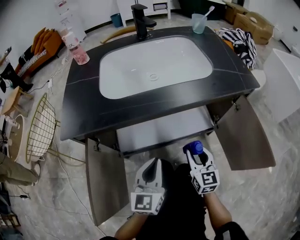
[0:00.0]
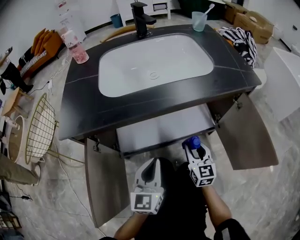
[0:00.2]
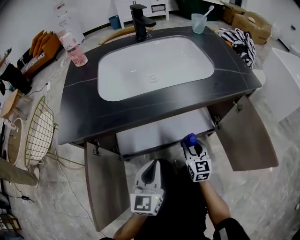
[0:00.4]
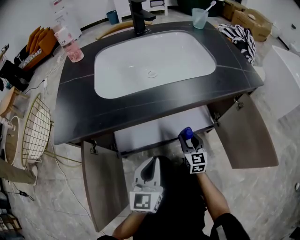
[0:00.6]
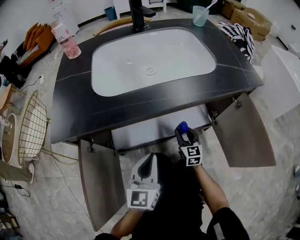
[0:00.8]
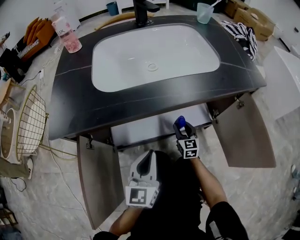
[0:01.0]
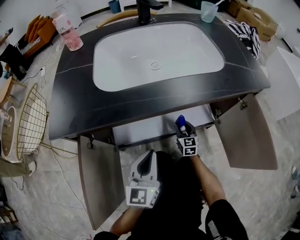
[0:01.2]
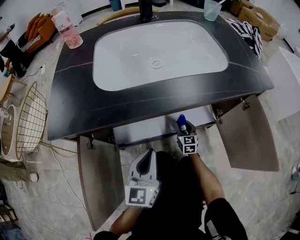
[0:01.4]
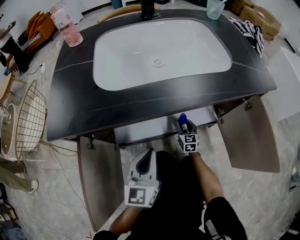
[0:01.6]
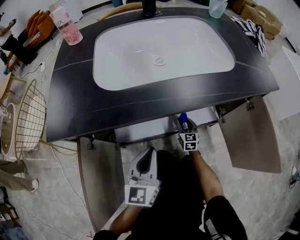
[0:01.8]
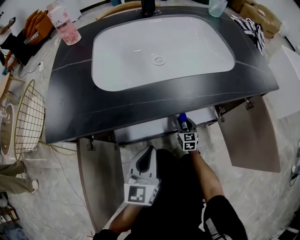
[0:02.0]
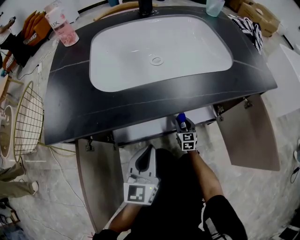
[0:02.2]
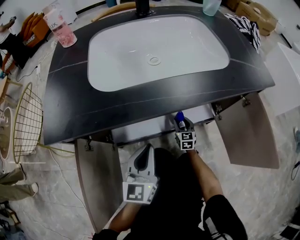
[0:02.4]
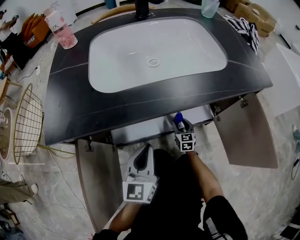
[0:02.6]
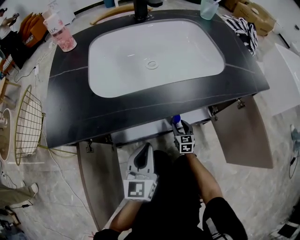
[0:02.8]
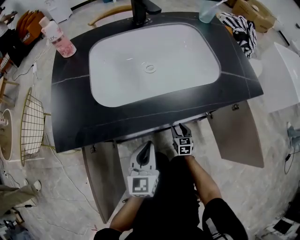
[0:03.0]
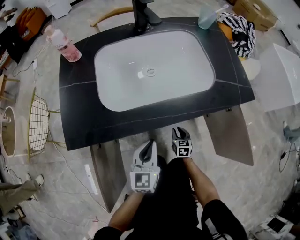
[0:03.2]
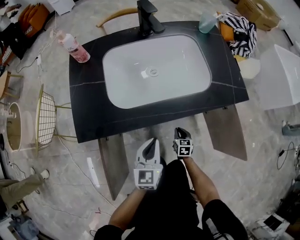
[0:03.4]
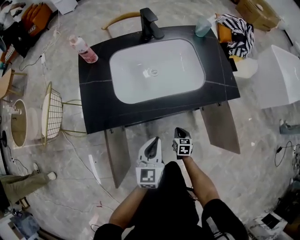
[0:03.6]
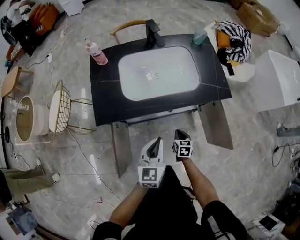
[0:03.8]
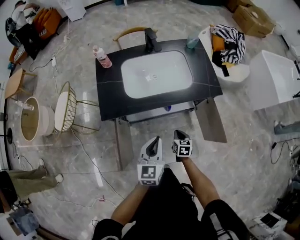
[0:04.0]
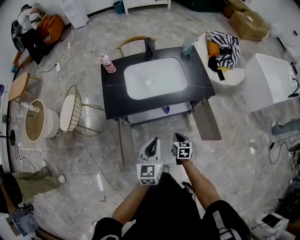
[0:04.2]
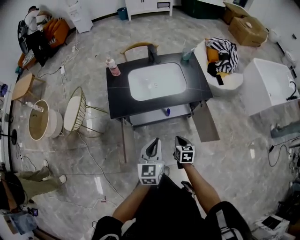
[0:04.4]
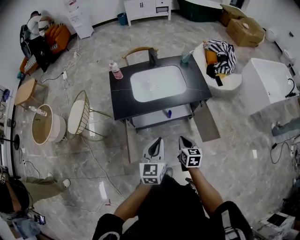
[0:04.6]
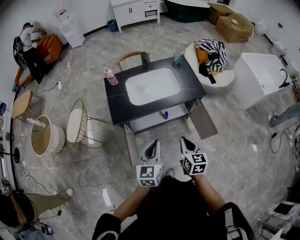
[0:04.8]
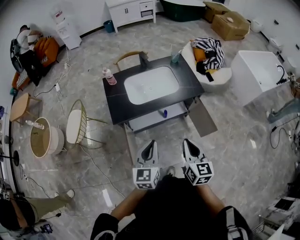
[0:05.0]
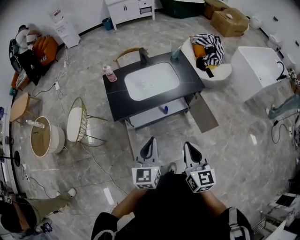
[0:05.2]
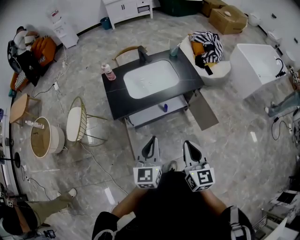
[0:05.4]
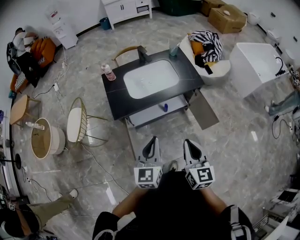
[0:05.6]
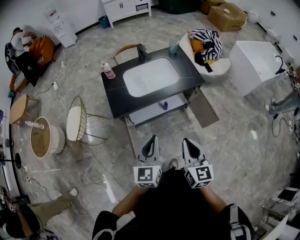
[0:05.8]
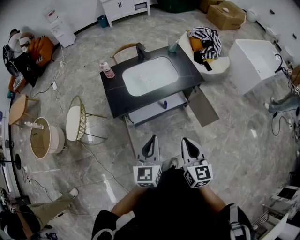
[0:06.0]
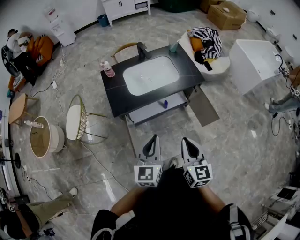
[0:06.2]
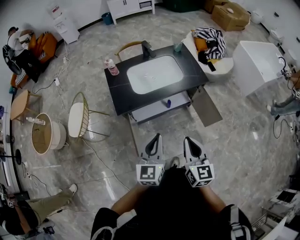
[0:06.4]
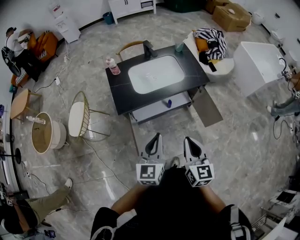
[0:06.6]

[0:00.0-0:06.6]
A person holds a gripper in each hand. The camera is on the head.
0:00.0 to 0:01.6: The left gripper moves roughly 5 cm. The right gripper shifts about 30 cm downward and forward.
0:01.6 to 0:03.2: The left gripper moves upward, about 10 cm; the right gripper travels upward and backward by about 10 cm, and turns by approximately 20 degrees.
0:03.2 to 0:05.0: The right gripper heads upward and backward, covering some 80 cm, rotates roughly 30 degrees, and closes up. Meanwhile the left gripper moves upward and backward, approximately 50 cm.
0:05.0 to 0:06.6: The right gripper heads to the left, covering some 5 cm.

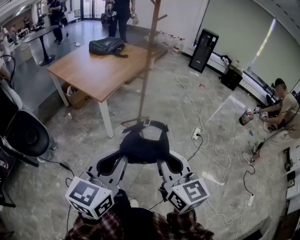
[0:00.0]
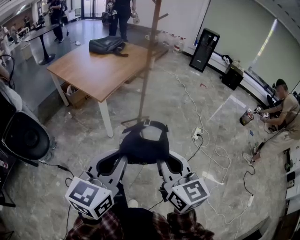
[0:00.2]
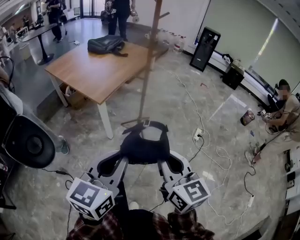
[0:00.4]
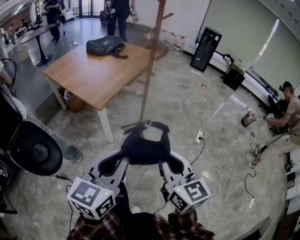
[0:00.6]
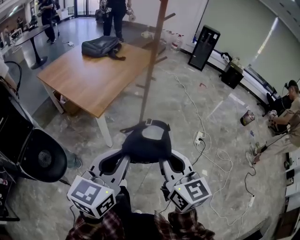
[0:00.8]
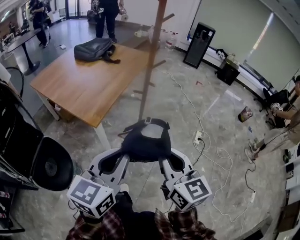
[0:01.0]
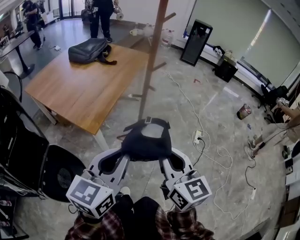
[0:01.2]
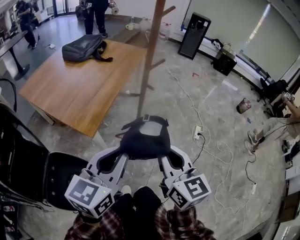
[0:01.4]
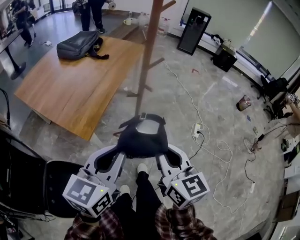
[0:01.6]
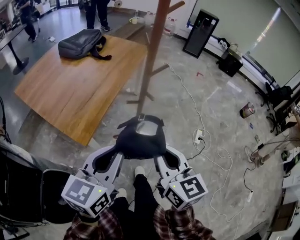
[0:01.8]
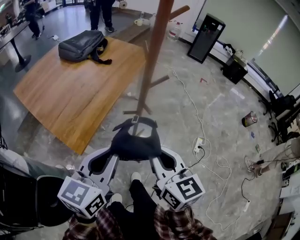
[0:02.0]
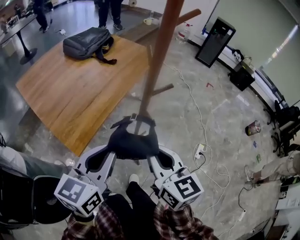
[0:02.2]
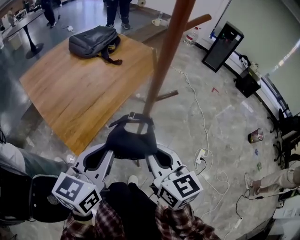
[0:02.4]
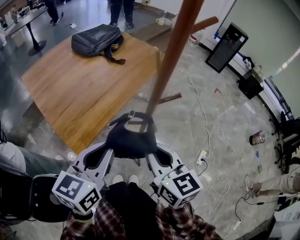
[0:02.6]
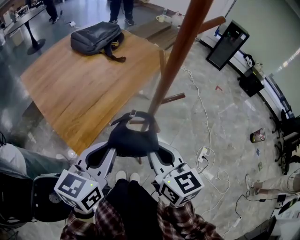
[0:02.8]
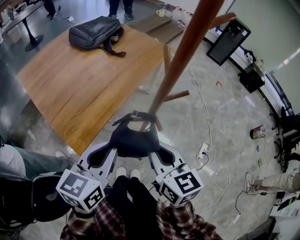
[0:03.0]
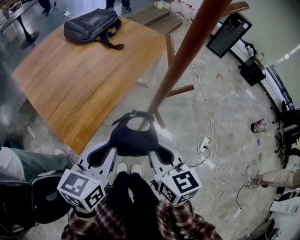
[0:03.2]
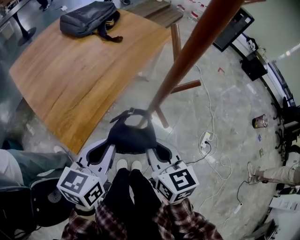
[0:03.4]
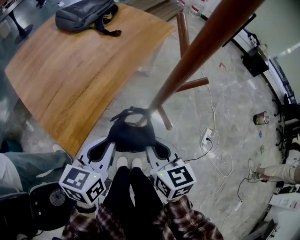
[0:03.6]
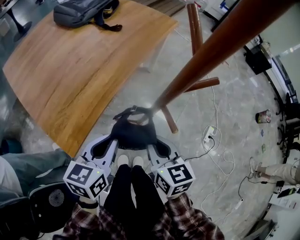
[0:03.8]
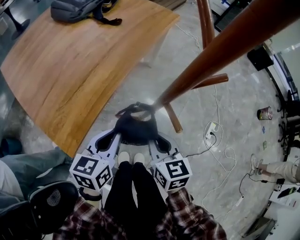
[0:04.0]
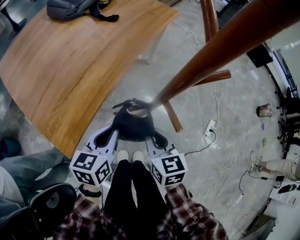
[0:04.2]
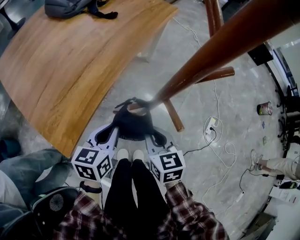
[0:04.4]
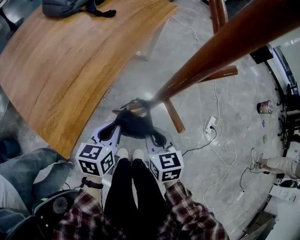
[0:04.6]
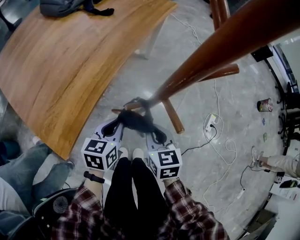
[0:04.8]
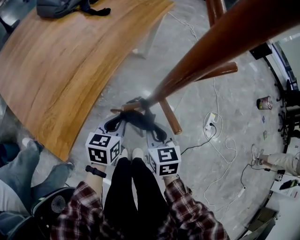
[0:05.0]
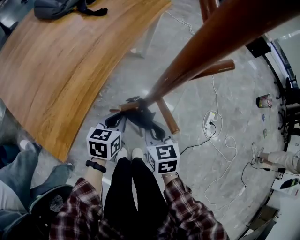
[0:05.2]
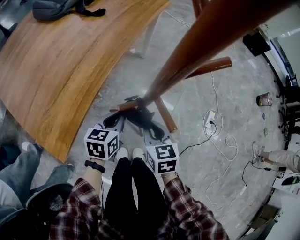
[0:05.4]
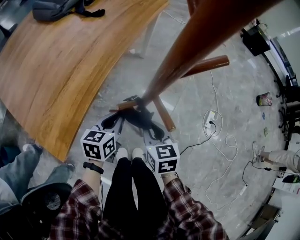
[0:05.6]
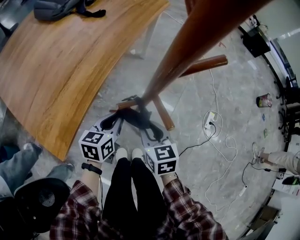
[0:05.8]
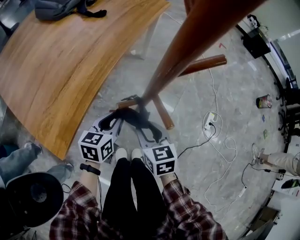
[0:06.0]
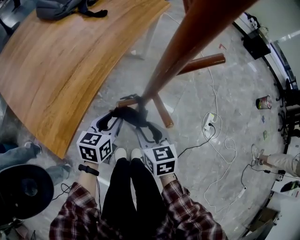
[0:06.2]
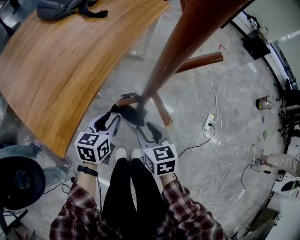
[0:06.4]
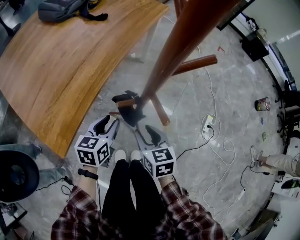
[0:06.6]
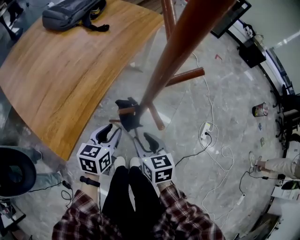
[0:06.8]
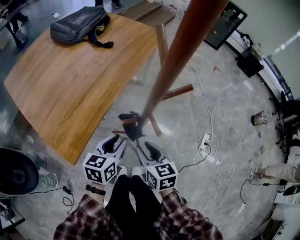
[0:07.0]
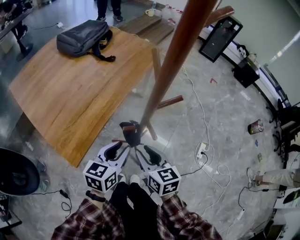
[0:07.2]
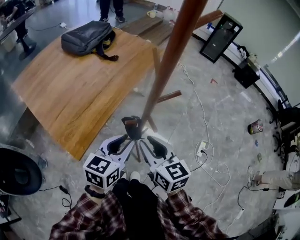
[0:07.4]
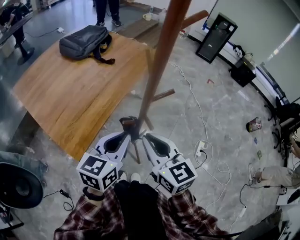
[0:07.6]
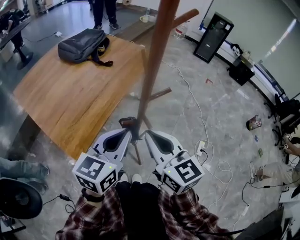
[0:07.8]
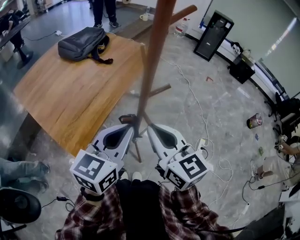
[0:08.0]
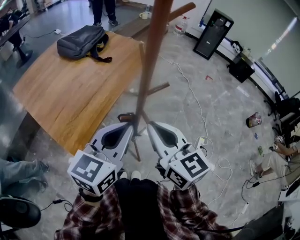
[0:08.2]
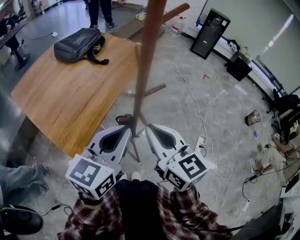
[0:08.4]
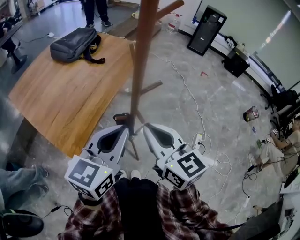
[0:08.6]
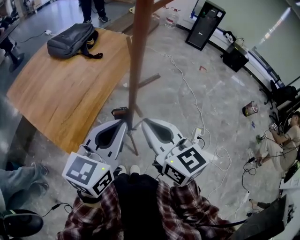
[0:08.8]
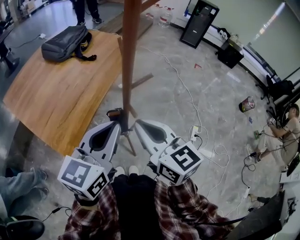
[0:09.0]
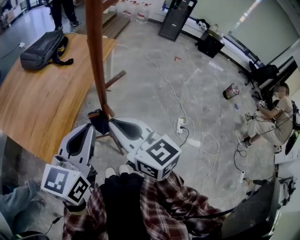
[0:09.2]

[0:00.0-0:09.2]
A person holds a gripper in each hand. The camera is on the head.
0:00.0 to 0:01.6: The grippers both shift forward by roughly 35 cm.
0:01.6 to 0:03.0: The grippers both shift forward by some 20 cm.
0:03.0 to 0:04.6: Both grippers travel together downward, about 30 cm.
0:04.6 to 0:06.2: The right gripper opens up, while the left gripper opens.
0:06.2 to 0:07.6: The two grippers go about 30 cm upward. The right gripper changes its angle by approximately 30 degrees, and closes up; the left gripper closes.
0:07.6 to 0:09.2: The left gripper heads upward, covering approximately 10 cm; the right gripper is displaced upward by about 5 cm.

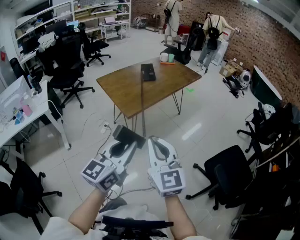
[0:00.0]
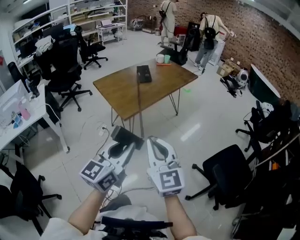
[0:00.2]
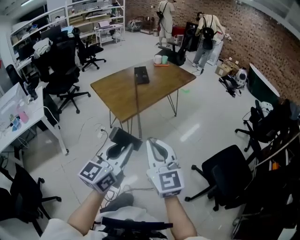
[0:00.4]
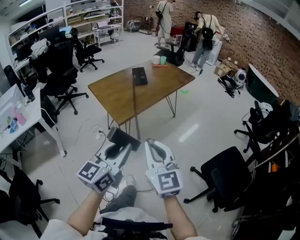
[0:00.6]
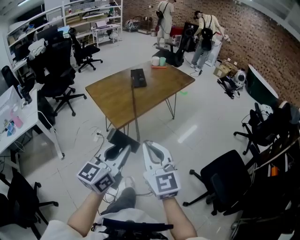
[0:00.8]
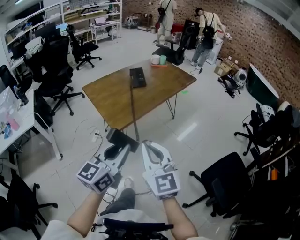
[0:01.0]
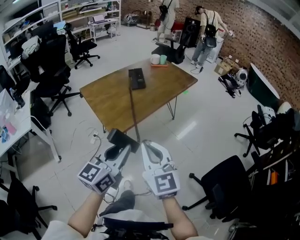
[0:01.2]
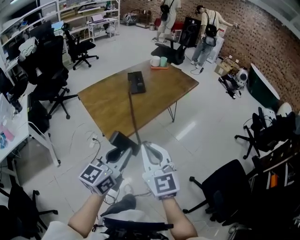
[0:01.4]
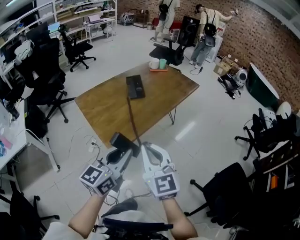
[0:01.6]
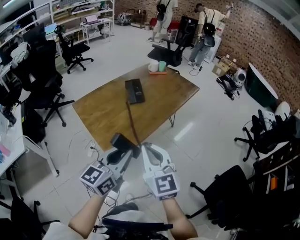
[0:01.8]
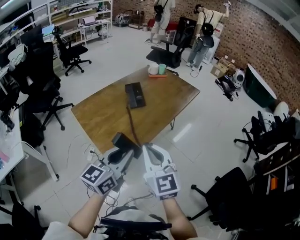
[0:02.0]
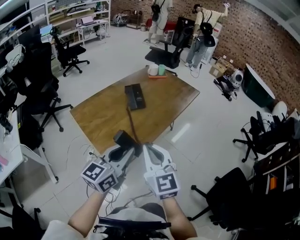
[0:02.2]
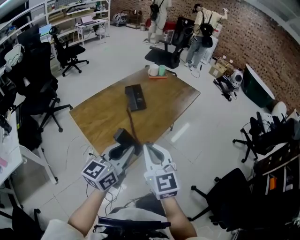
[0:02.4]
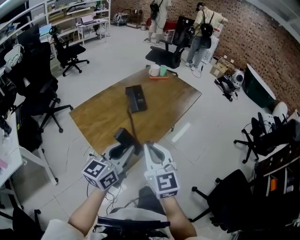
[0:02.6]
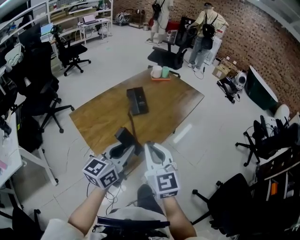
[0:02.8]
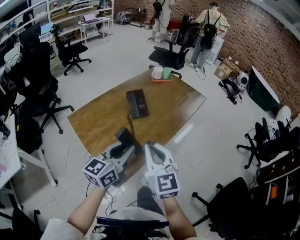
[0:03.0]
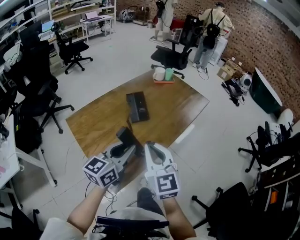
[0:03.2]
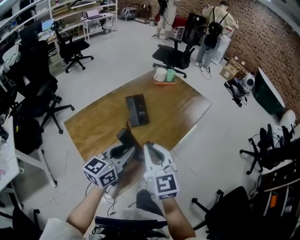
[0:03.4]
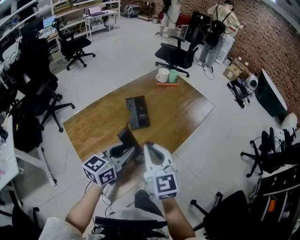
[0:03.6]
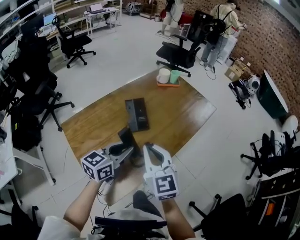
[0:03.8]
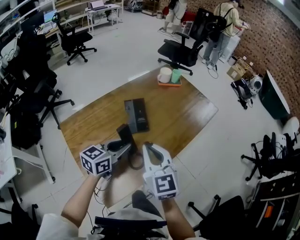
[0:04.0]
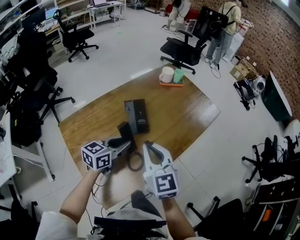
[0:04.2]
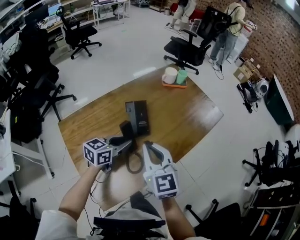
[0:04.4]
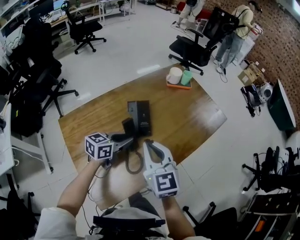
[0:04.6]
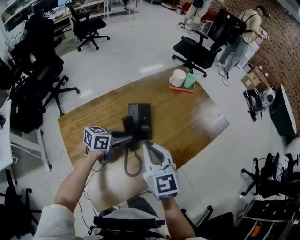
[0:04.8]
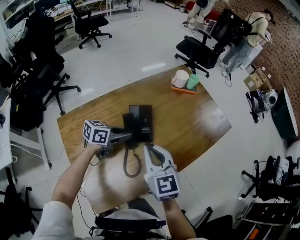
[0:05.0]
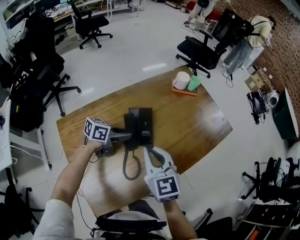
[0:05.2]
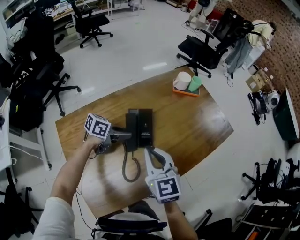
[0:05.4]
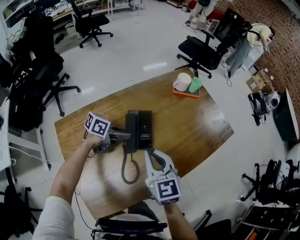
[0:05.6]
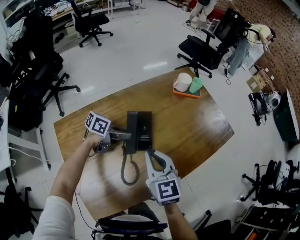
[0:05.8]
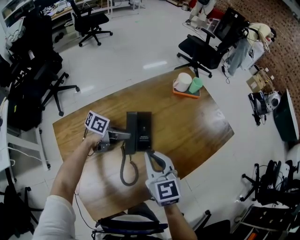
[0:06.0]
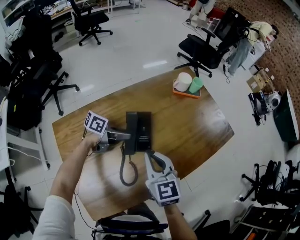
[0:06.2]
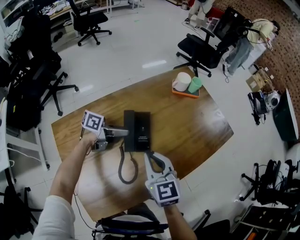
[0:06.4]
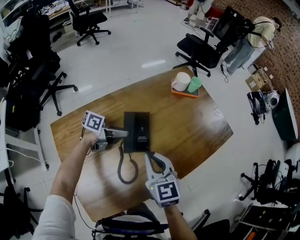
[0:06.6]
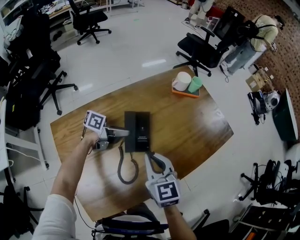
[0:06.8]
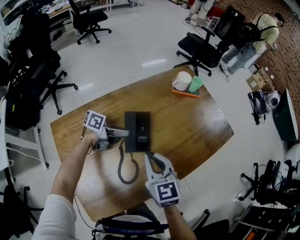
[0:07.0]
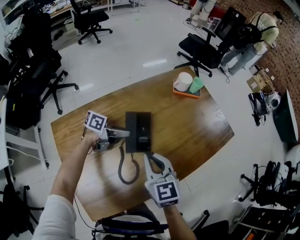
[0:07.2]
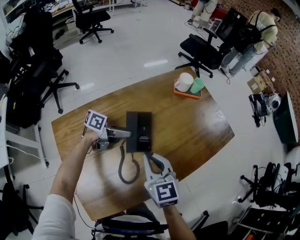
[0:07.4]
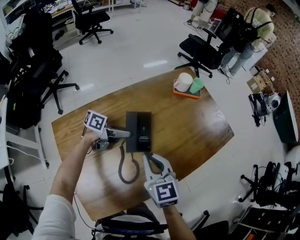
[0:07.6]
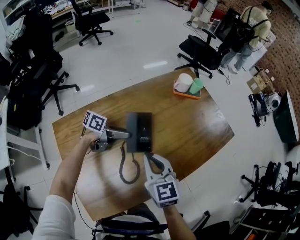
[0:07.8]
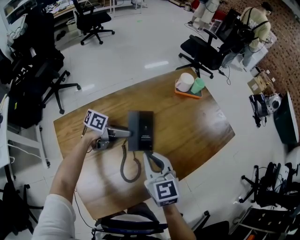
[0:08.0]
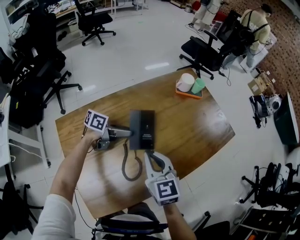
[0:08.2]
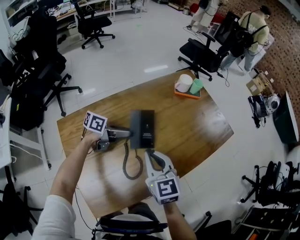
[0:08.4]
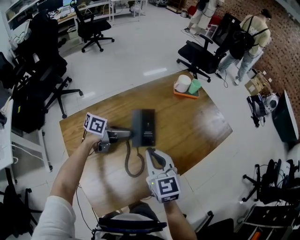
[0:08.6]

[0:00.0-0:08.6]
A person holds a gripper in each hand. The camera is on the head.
0:00.0 to 0:01.4: Both grippers travel together forward, roughly 20 cm.
0:01.4 to 0:02.8: Both grippers travel together forward, approximately 20 cm.
0:02.8 to 0:04.4: The right gripper shifts approximately 25 cm forward, while the left gripper moves forward and downward, approximately 30 cm.
0:04.4 to 0:05.8: The right gripper moves forward and downward, about 10 cm. The left gripper travels forward and downward by some 15 cm, and changes its angle by about 30 degrees.
0:05.8 to 0:07.2: There are only small adjustments of the grippers.
0:07.2 to 0:08.6: The left gripper ends up approximately 5 cm from where it was, and opens and closes again.
